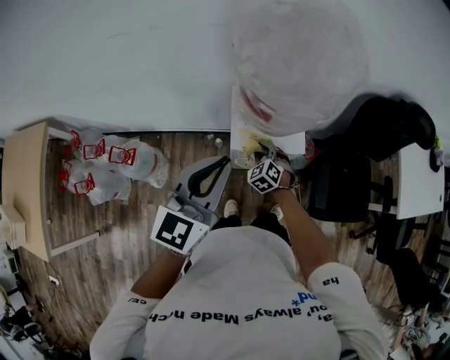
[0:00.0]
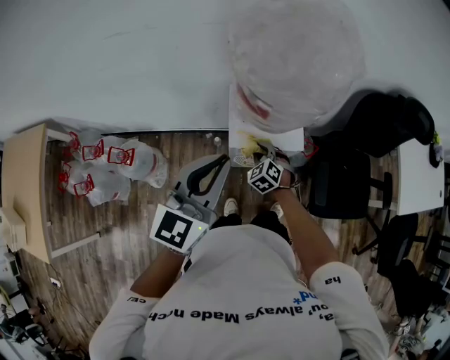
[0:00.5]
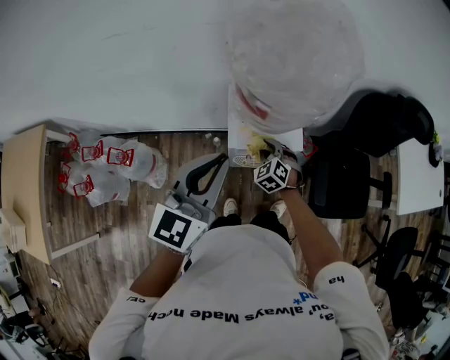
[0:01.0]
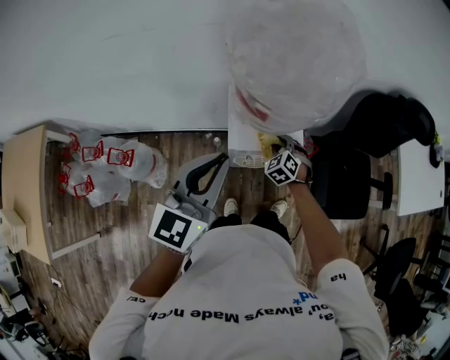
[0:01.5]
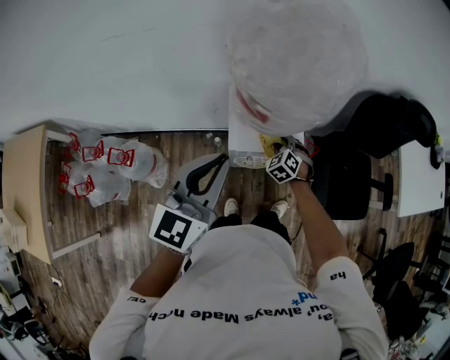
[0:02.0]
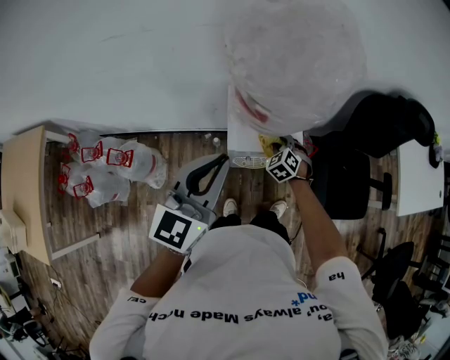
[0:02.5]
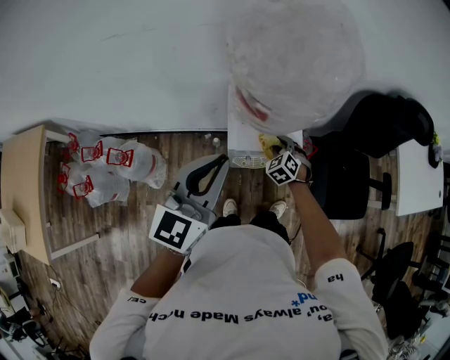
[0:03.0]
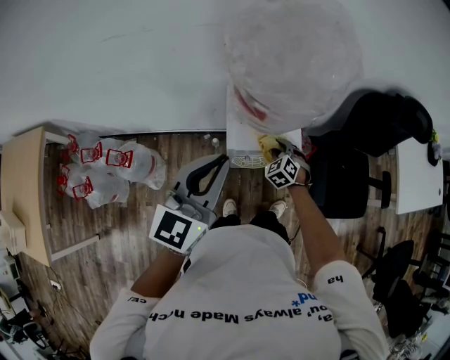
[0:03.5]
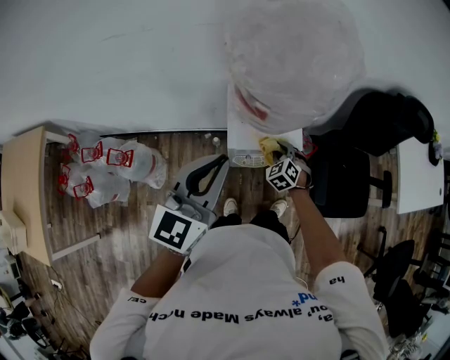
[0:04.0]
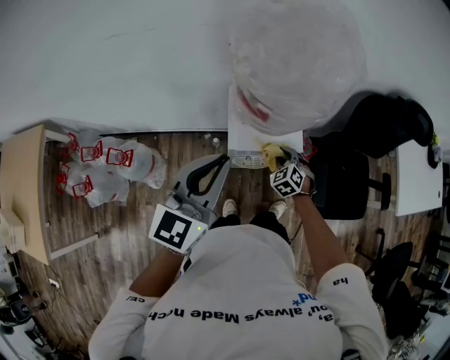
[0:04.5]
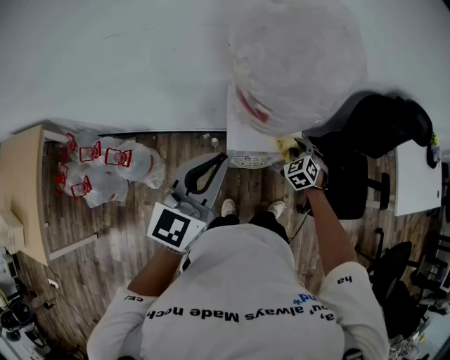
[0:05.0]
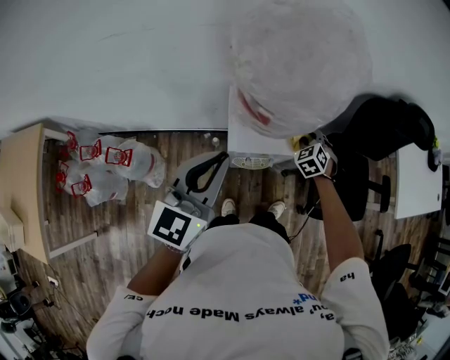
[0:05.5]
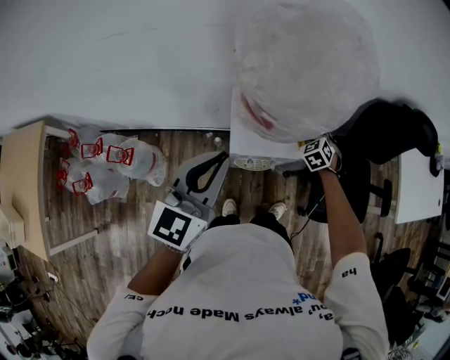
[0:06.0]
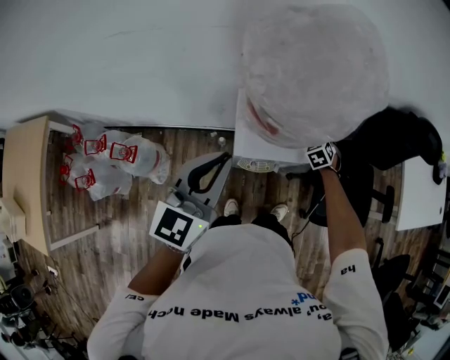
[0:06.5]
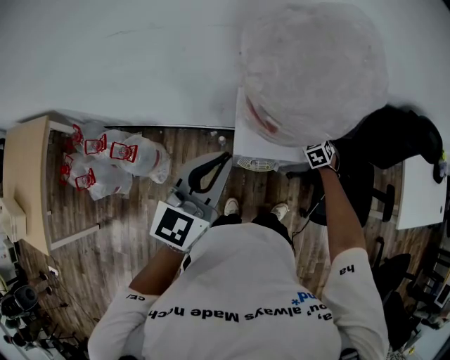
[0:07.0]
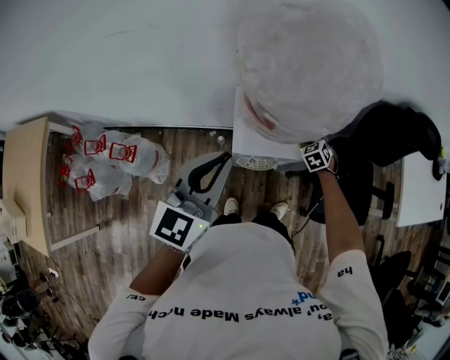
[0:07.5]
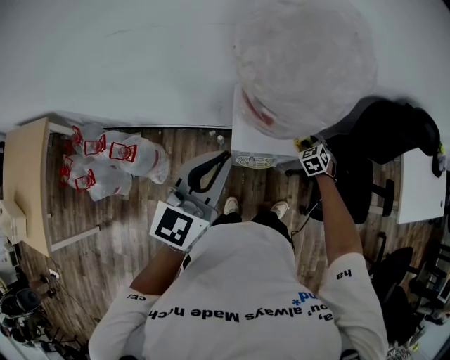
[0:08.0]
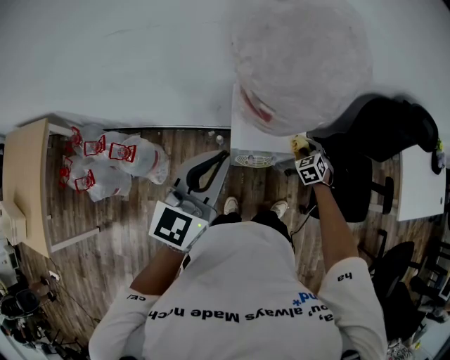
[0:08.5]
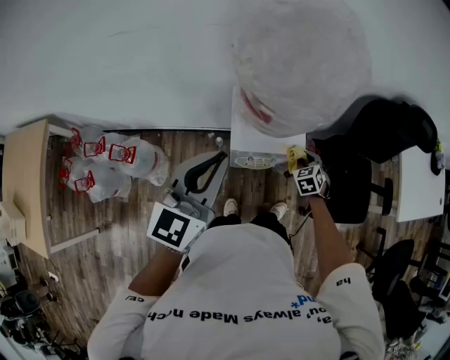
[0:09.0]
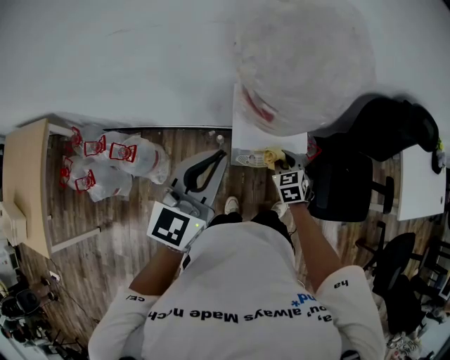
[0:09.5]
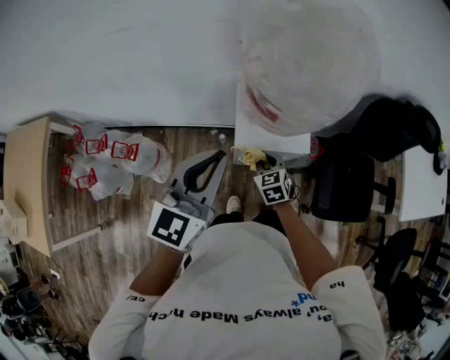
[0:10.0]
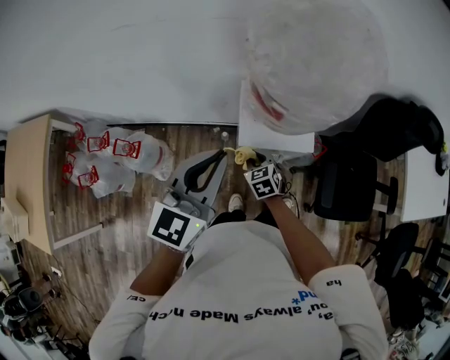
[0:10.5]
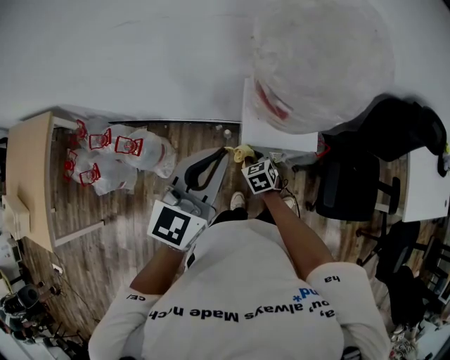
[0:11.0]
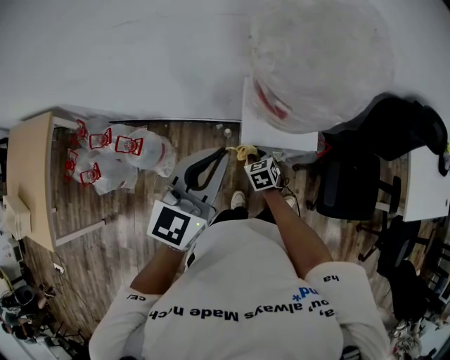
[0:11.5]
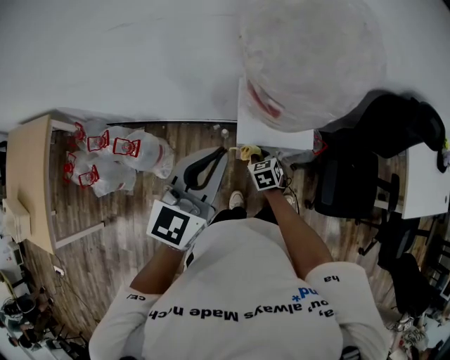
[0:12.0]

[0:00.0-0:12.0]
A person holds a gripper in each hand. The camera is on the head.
0:00.0 to 0:02.0: The right gripper moves to the right, roughly 5 cm.
0:02.0 to 0:04.0: The grippers move only a little.
0:04.0 to 0:06.0: The right gripper goes approximately 15 cm forward and to the right.
0:06.0 to 0:08.0: The right gripper shifts by approximately 5 cm.
0:08.0 to 0:10.0: The right gripper goes some 20 cm to the left and backward, and turns by approximately 20 degrees.
0:10.0 to 0:12.0: The right gripper moves downward, roughly 5 cm.

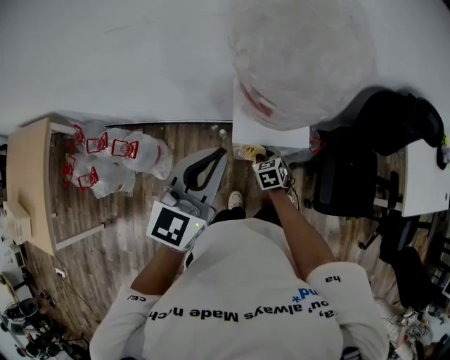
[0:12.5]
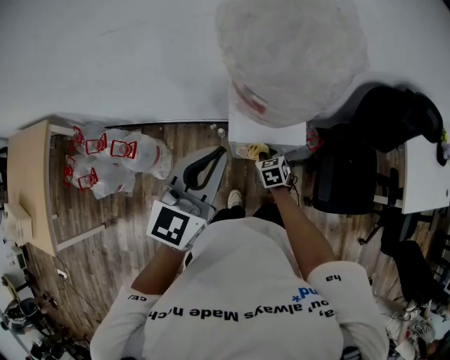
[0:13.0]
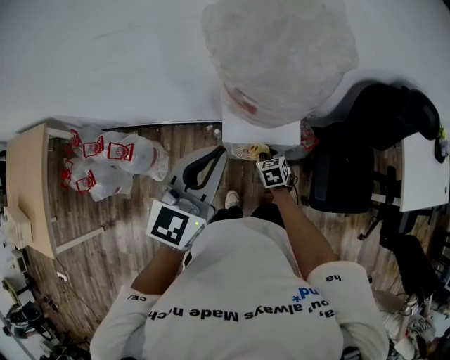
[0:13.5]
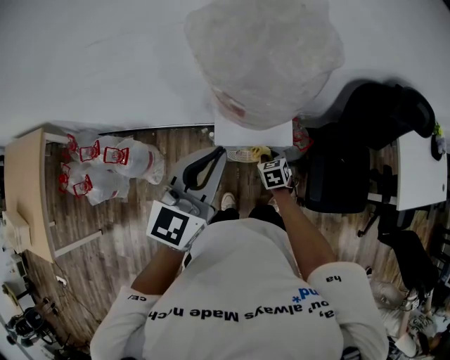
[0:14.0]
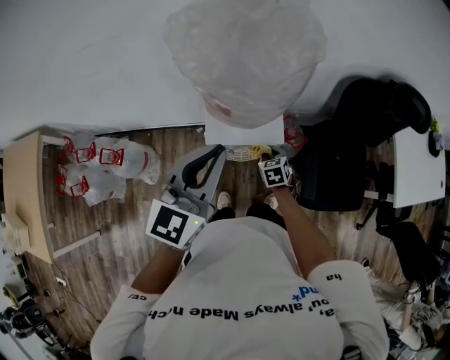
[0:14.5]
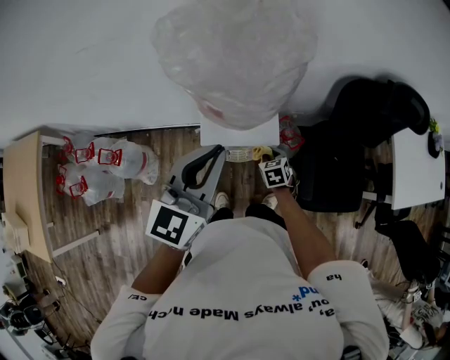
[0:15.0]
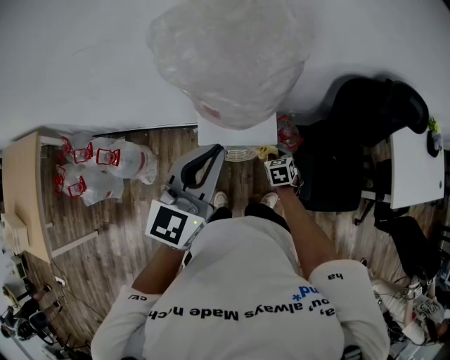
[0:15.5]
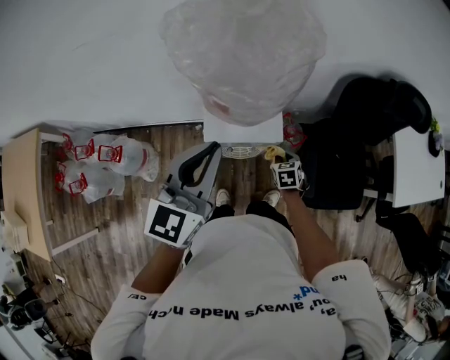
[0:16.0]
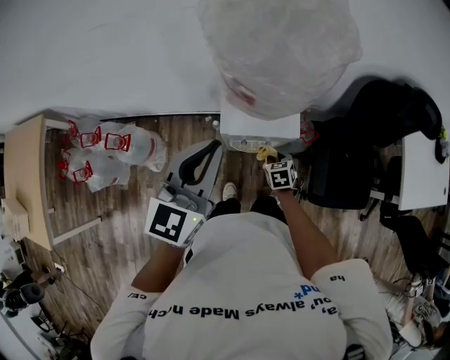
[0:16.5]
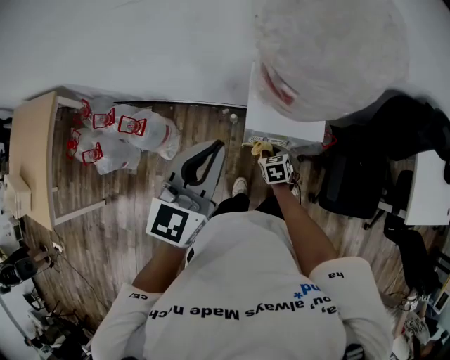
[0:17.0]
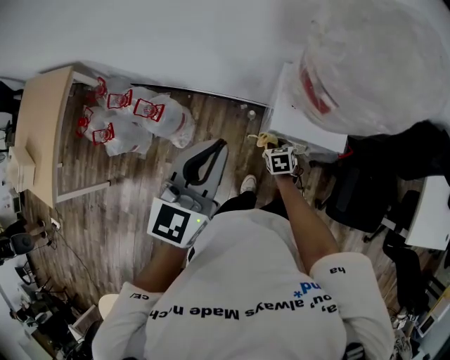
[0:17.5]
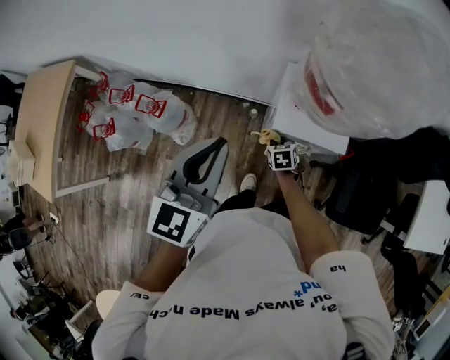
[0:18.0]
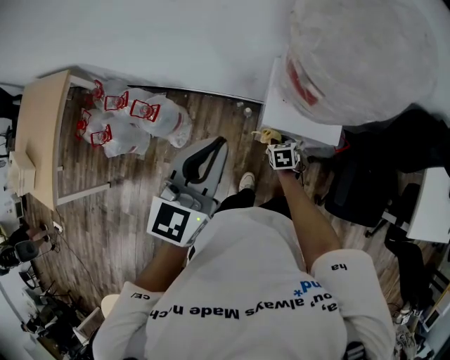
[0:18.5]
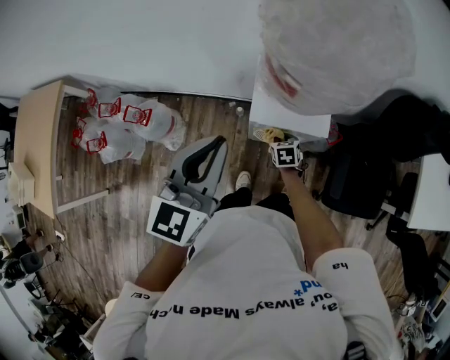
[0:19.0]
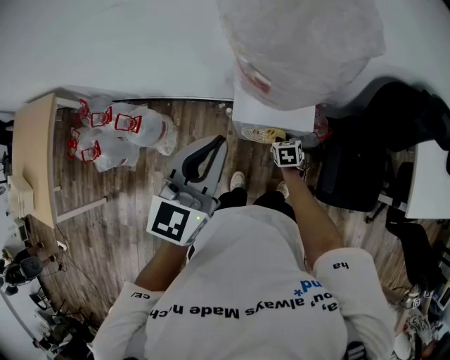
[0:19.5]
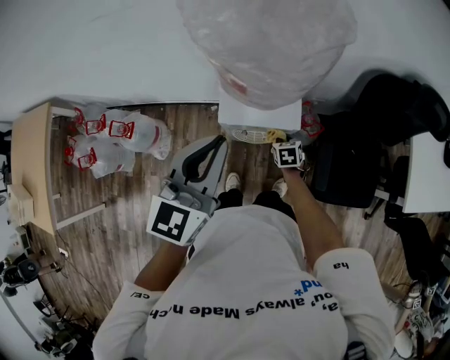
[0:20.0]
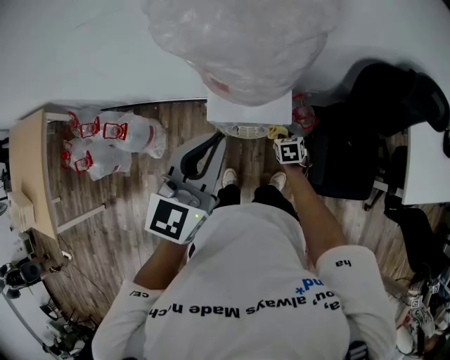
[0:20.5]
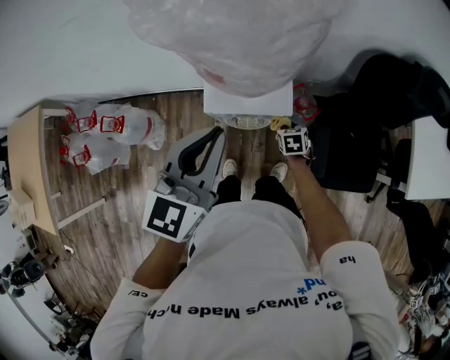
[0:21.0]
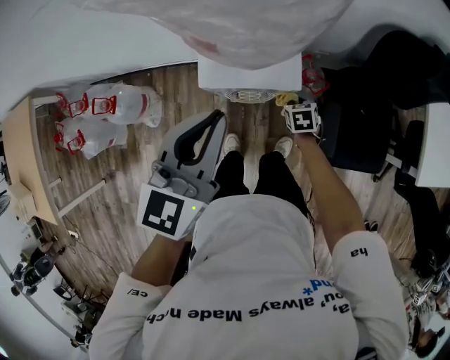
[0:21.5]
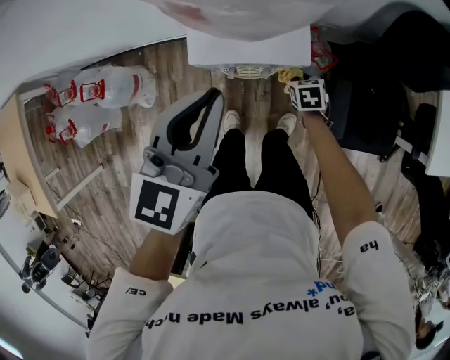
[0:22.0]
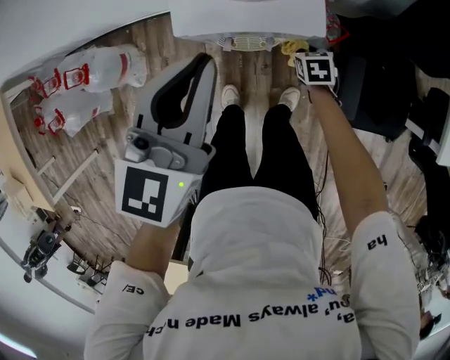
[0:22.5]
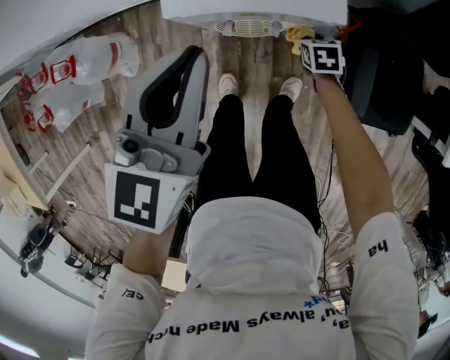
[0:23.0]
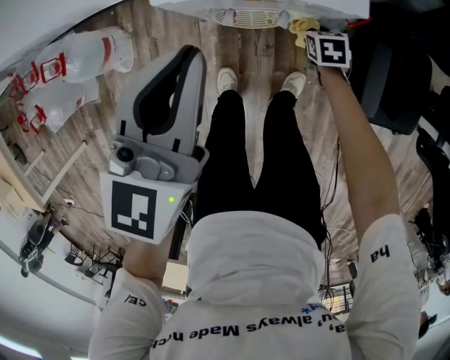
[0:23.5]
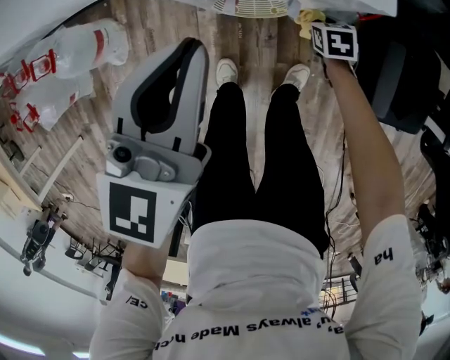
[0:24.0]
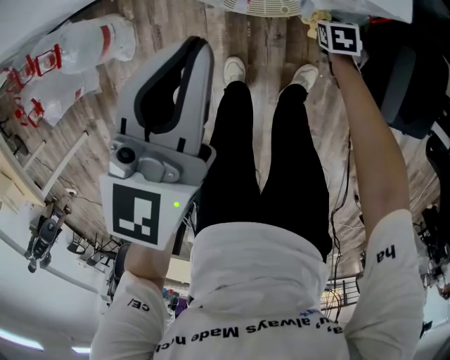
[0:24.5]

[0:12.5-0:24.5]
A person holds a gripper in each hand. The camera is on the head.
0:12.5 to 0:14.5: Both grippers travel together to the right, some 10 cm.
0:14.5 to 0:16.5: The right gripper moves some 5 cm. Meanwhile the left gripper travels to the left by approximately 10 cm.
0:16.5 to 0:18.5: The grippers both shift to the left by roughly 10 cm.
0:18.5 to 0:20.5: The two grippers go about 20 cm to the right.
0:20.5 to 0:22.5: Both grippers move downward, some 15 cm.
0:22.5 to 0:24.5: The two grippers go roughly 15 cm downward.

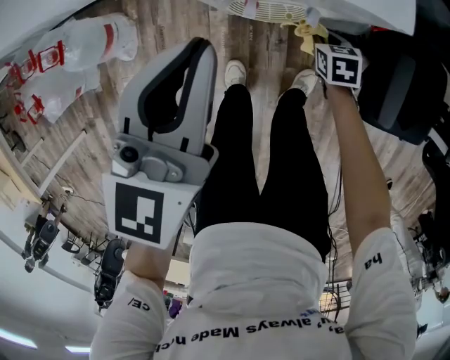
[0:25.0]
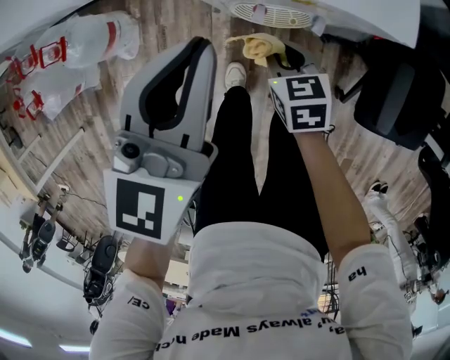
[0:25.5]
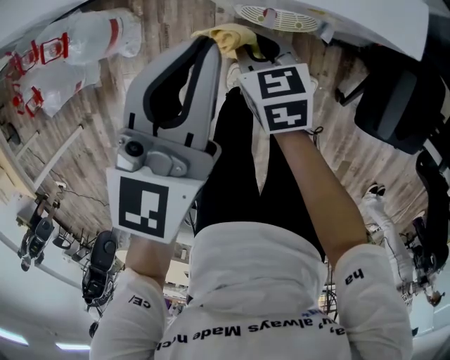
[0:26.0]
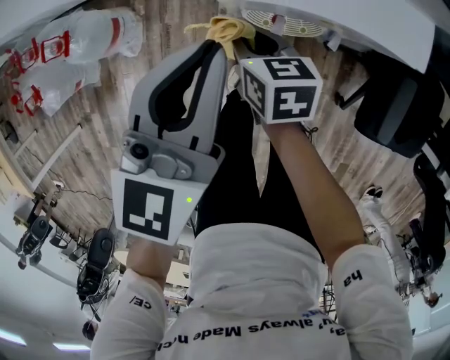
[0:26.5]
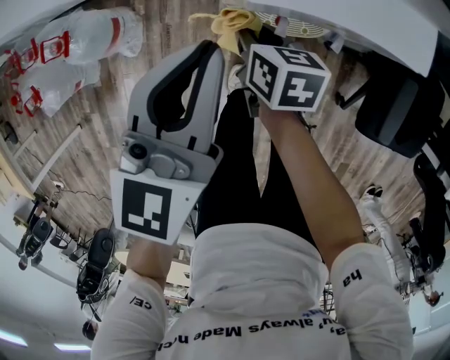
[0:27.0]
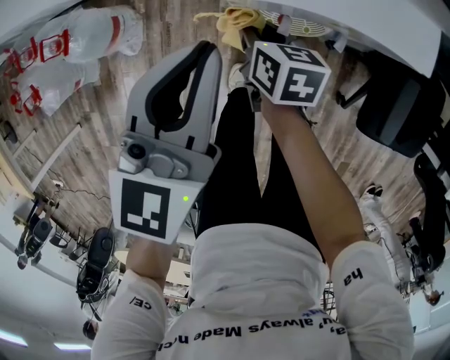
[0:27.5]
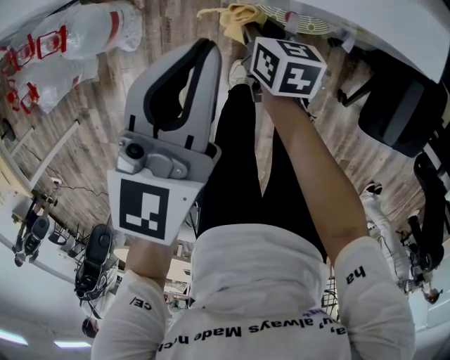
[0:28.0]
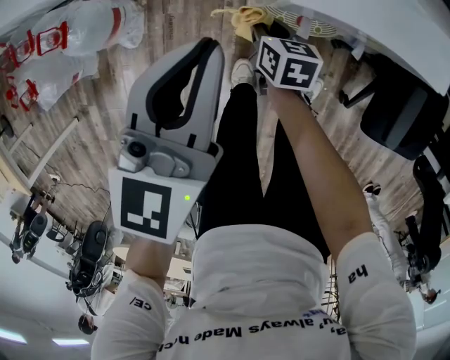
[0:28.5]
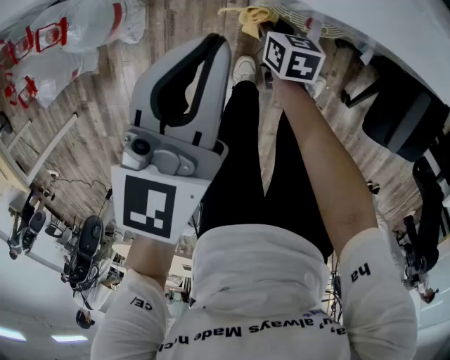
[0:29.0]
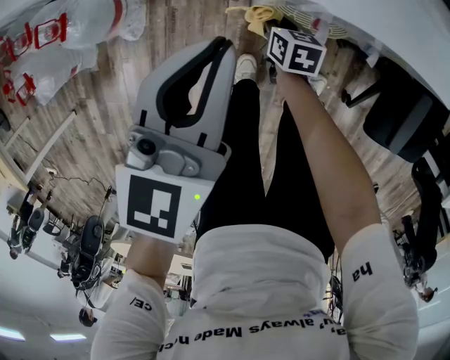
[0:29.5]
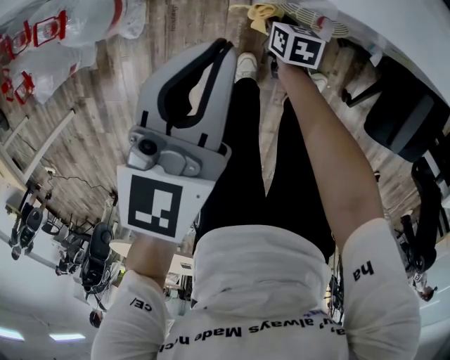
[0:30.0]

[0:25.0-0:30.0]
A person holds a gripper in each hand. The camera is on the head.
0:25.0 to 0:27.5: The right gripper is displaced to the left and upward by some 25 cm, and turns by approximately 30 degrees. Meanwhile the left gripper goes approximately 5 cm to the left.
0:27.5 to 0:30.0: The left gripper moves some 5 cm. Meanwhile the right gripper shifts about 15 cm downward.
